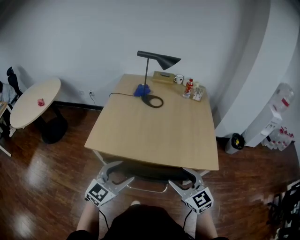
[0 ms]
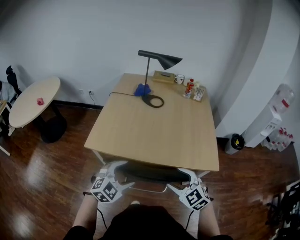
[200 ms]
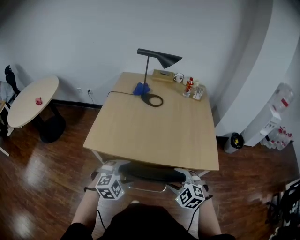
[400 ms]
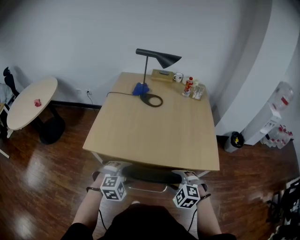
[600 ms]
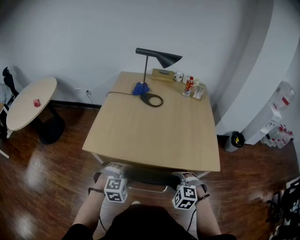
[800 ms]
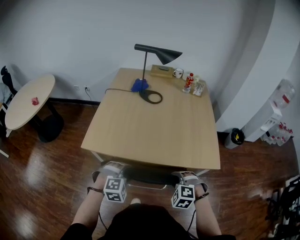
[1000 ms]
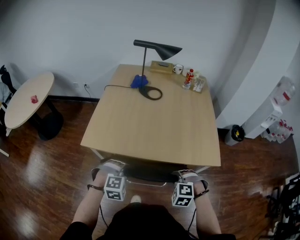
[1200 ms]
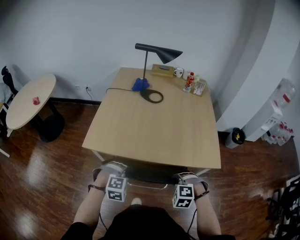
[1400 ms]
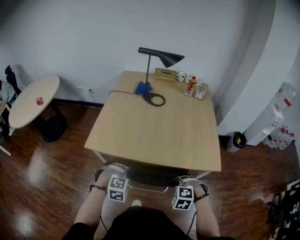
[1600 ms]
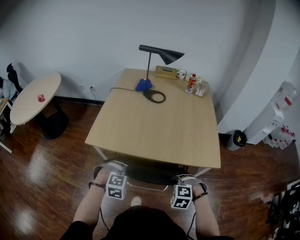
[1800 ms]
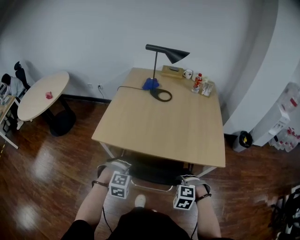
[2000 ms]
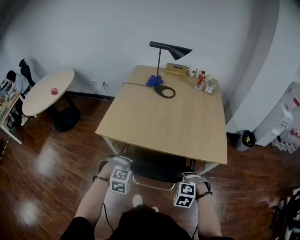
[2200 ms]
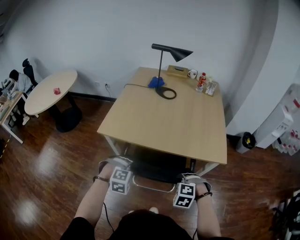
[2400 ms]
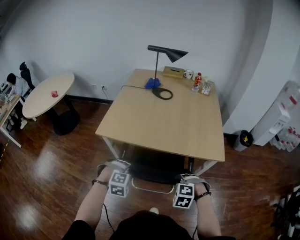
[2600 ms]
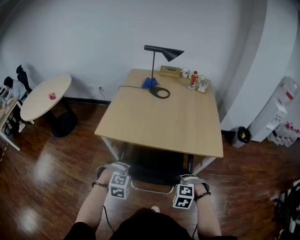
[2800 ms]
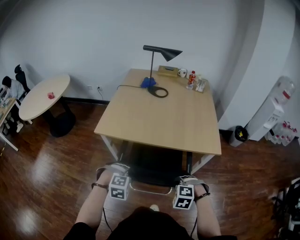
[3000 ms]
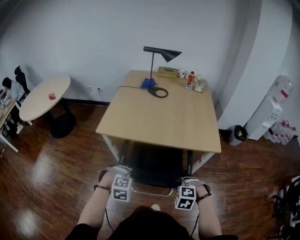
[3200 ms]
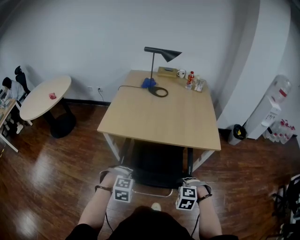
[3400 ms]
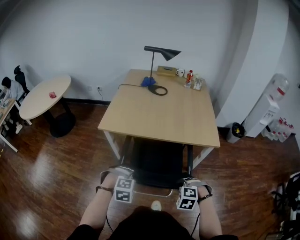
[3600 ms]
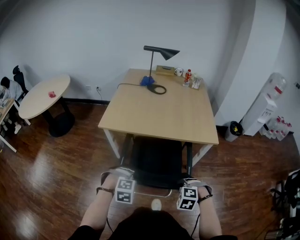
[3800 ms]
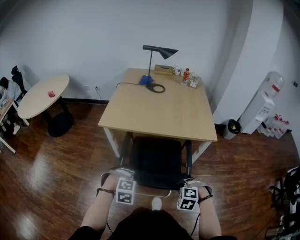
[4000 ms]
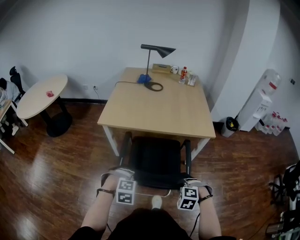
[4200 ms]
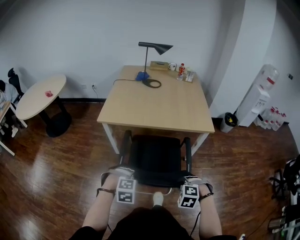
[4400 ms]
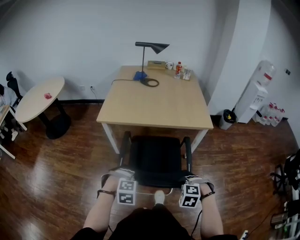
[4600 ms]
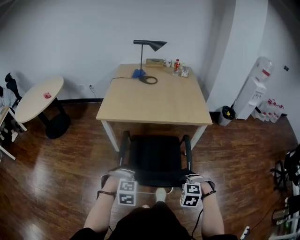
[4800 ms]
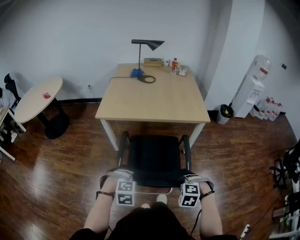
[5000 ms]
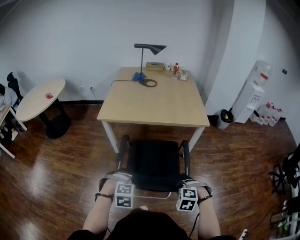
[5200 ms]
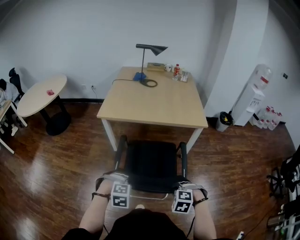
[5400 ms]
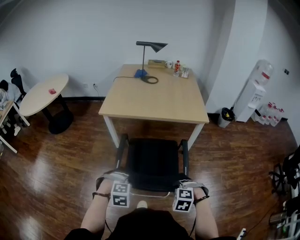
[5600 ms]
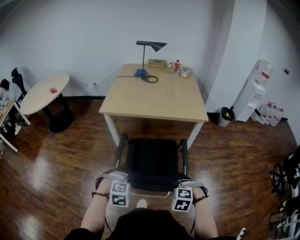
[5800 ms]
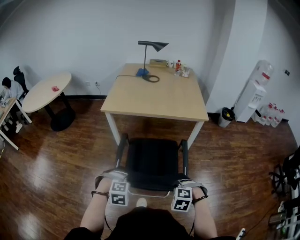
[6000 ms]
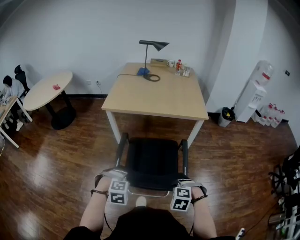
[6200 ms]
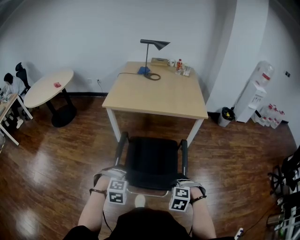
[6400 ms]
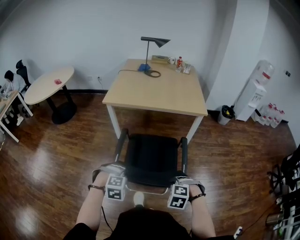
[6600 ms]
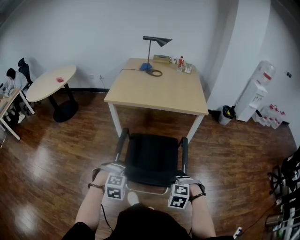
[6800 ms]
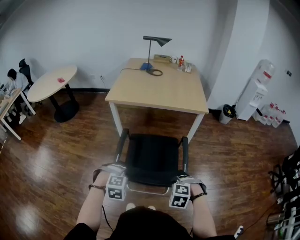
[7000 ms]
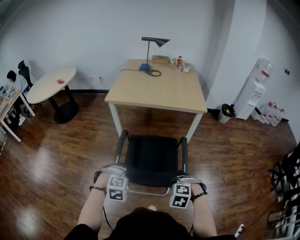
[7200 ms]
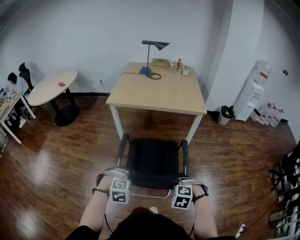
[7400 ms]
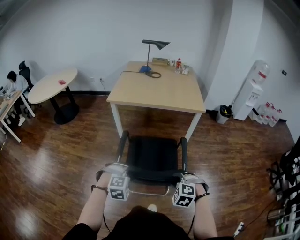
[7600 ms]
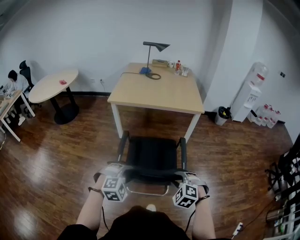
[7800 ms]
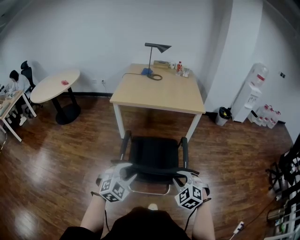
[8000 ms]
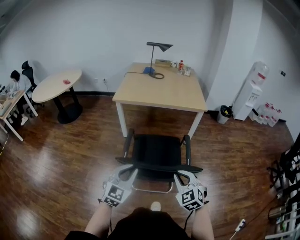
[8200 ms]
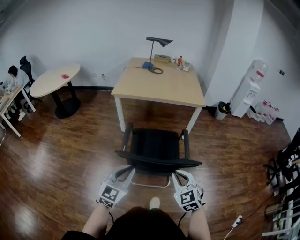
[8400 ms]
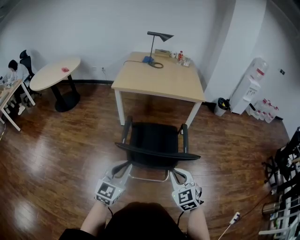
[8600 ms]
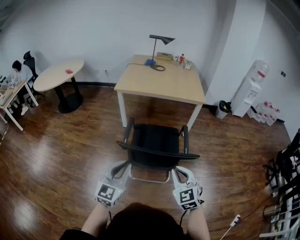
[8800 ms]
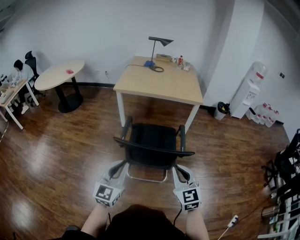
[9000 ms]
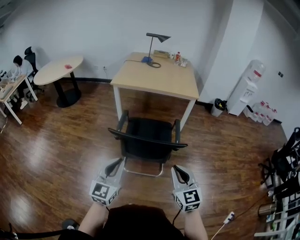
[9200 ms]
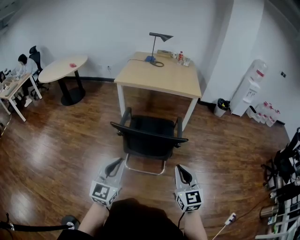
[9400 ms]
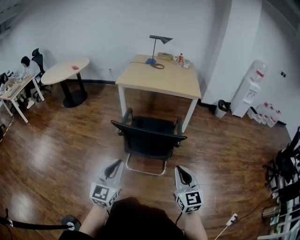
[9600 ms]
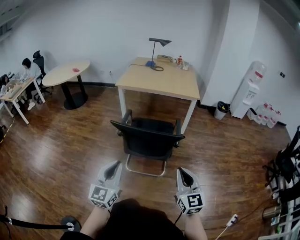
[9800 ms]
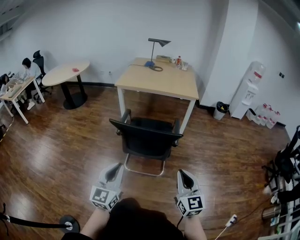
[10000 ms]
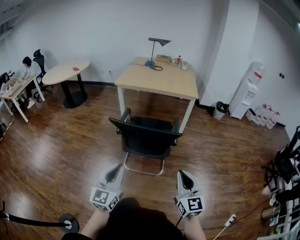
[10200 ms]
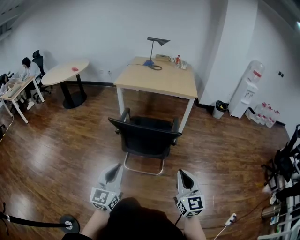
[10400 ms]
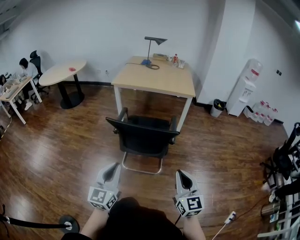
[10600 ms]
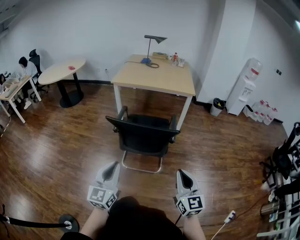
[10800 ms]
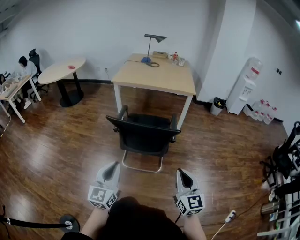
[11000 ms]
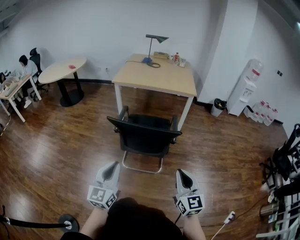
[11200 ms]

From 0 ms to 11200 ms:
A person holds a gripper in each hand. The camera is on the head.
From 0 ms to 1600 ms: Both grippers travel together downward, approximately 15 cm. The right gripper points its fingers approximately 50 degrees further downward, and closes, while the left gripper tips its fingers downward by approximately 50 degrees, and closes.
From 1600 ms to 3200 ms: The grippers both shift backward by approximately 15 cm.
From 3200 ms to 4800 ms: The two grippers go approximately 20 cm backward.
From 4800 ms to 6400 ms: The two grippers go roughly 15 cm backward.
From 6400 ms to 8000 ms: Both grippers travel together upward and backward, roughly 15 cm. The left gripper tips its fingers upward by roughly 40 degrees. The right gripper points its fingers roughly 30 degrees further upward.
From 8000 ms to 9600 ms: The right gripper goes approximately 20 cm backward and upward, and tips its fingers upward by roughly 30 degrees, while the left gripper heads backward, covering about 20 cm, turns by about 50 degrees, and closes its fingers.

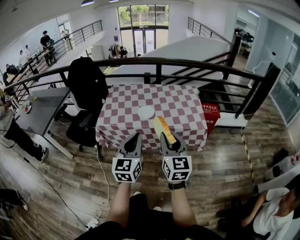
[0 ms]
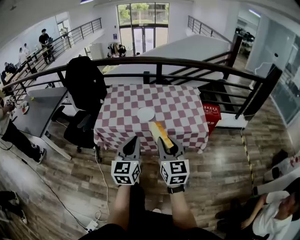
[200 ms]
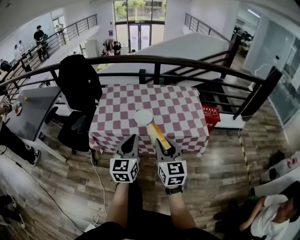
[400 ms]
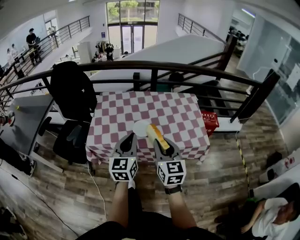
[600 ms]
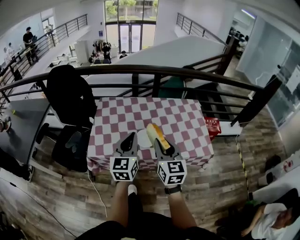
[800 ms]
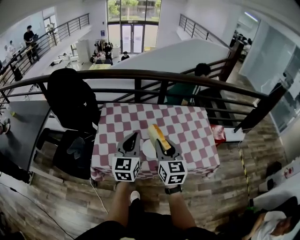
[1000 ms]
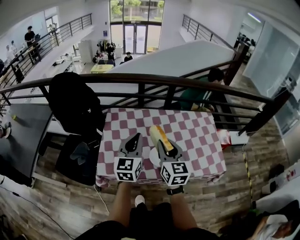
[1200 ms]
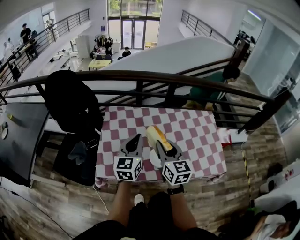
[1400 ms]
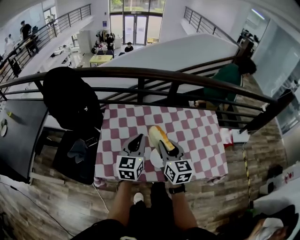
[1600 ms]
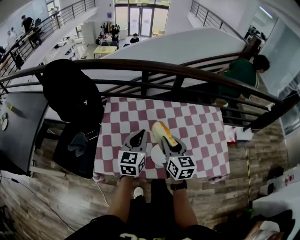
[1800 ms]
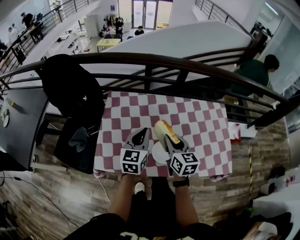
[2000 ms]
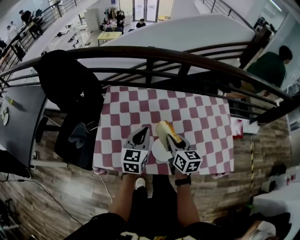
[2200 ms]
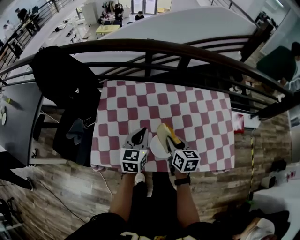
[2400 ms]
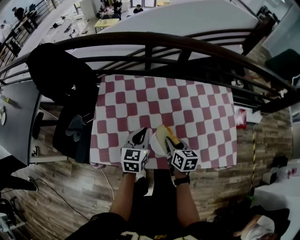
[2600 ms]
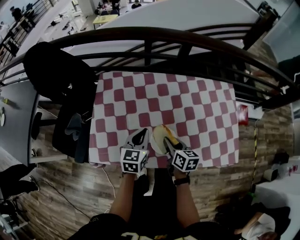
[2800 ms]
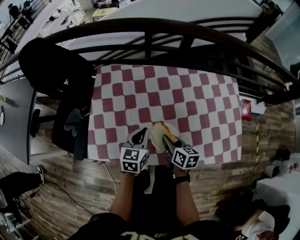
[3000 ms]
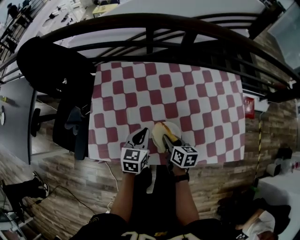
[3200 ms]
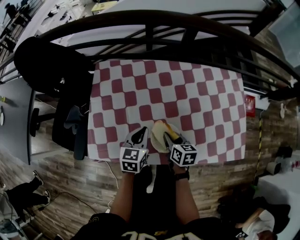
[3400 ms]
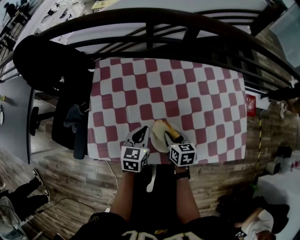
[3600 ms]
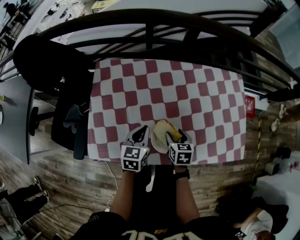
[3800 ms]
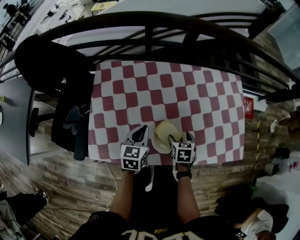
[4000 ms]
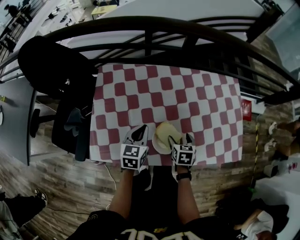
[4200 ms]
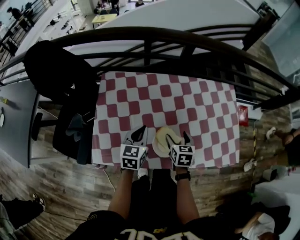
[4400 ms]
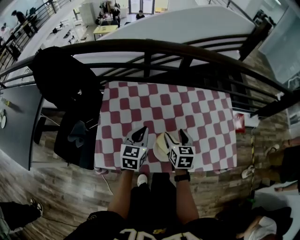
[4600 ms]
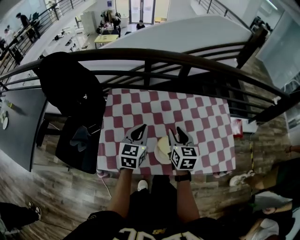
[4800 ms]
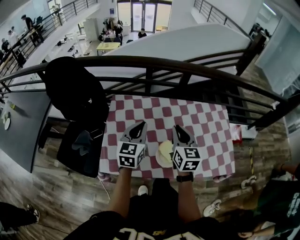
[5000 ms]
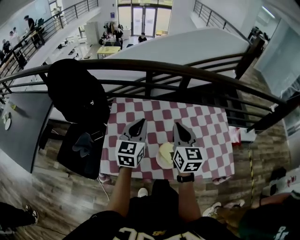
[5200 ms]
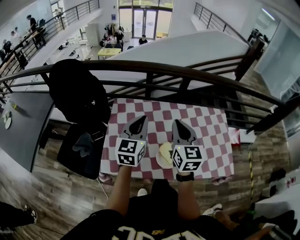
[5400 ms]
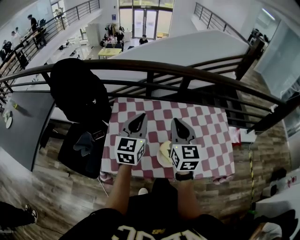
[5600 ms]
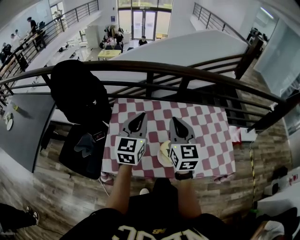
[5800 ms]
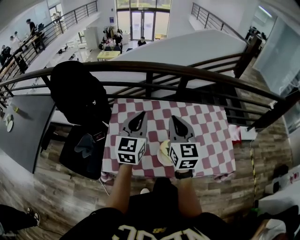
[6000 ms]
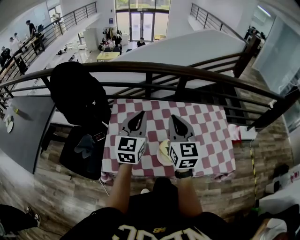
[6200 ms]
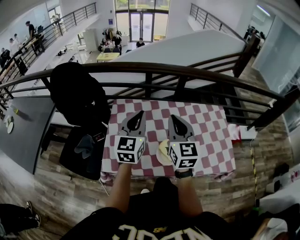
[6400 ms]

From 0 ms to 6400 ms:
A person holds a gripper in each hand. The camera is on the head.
From 0 ms to 1600 ms: The two grippers travel together, forward, roughly 50 cm.
From 1600 ms to 3200 ms: The two grippers go roughly 25 cm downward. The right gripper changes its angle by some 40 degrees, while the left gripper changes its angle by roughly 20 degrees.
From 3200 ms to 4800 ms: Both grippers move upward, roughly 15 cm. The right gripper swivels approximately 40 degrees, and opens, then closes once more.
From 4800 ms to 6400 ms: The grippers both shift upward by about 15 cm. The right gripper rotates some 20 degrees, and closes its fingers.

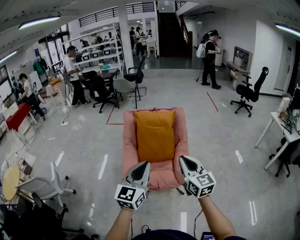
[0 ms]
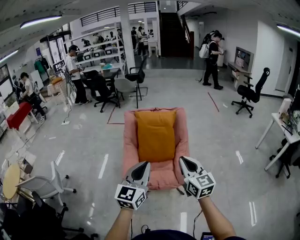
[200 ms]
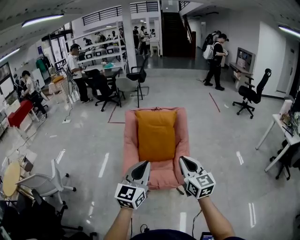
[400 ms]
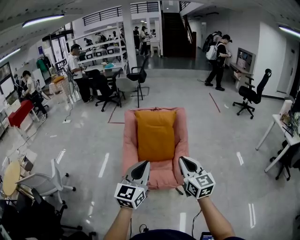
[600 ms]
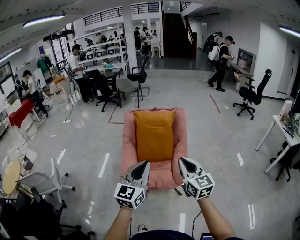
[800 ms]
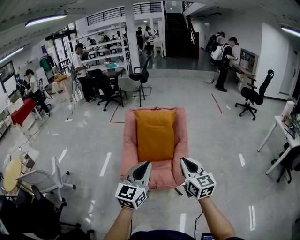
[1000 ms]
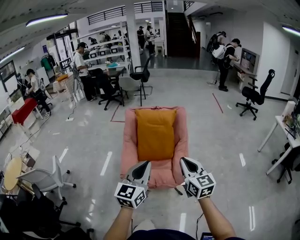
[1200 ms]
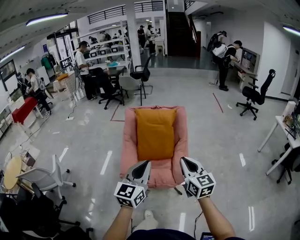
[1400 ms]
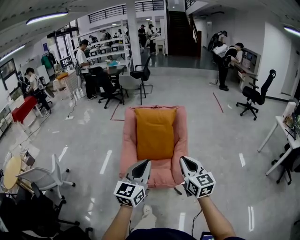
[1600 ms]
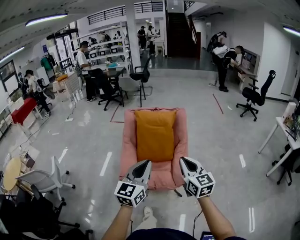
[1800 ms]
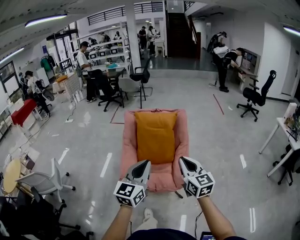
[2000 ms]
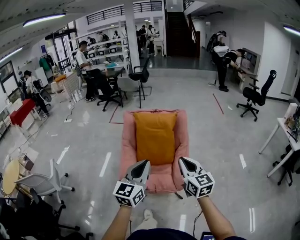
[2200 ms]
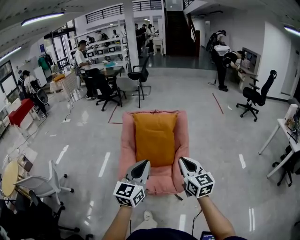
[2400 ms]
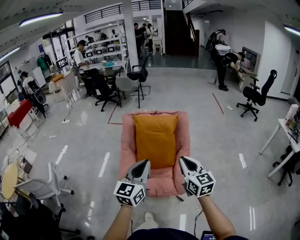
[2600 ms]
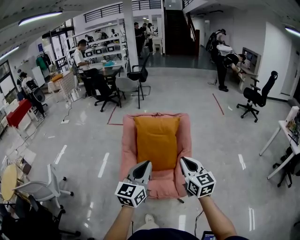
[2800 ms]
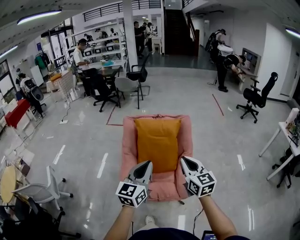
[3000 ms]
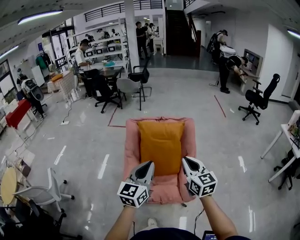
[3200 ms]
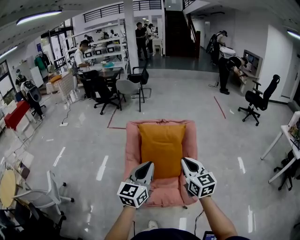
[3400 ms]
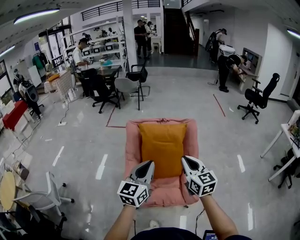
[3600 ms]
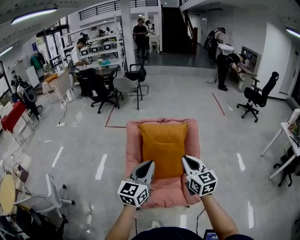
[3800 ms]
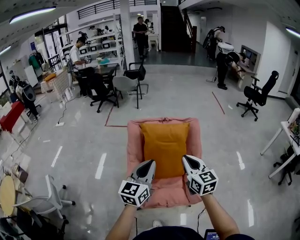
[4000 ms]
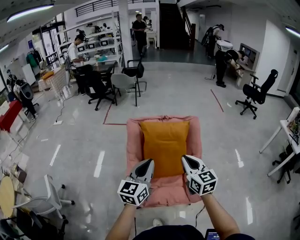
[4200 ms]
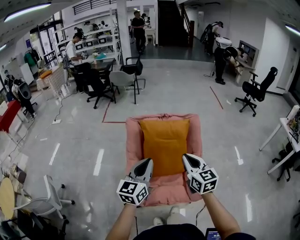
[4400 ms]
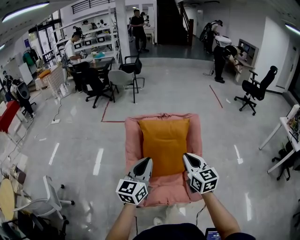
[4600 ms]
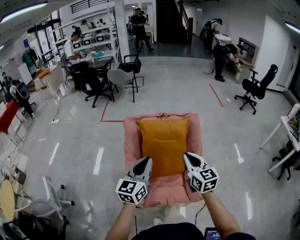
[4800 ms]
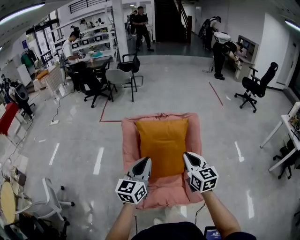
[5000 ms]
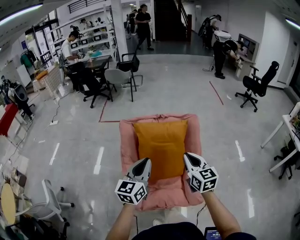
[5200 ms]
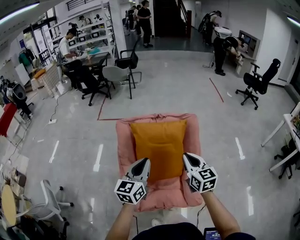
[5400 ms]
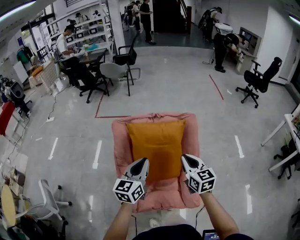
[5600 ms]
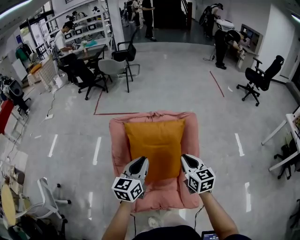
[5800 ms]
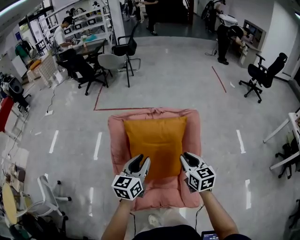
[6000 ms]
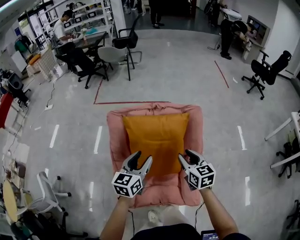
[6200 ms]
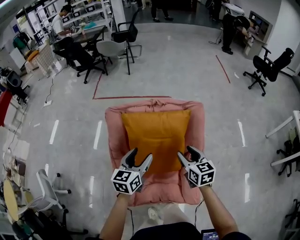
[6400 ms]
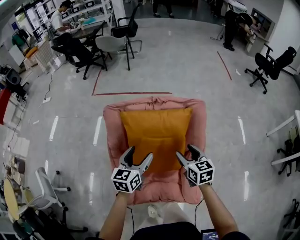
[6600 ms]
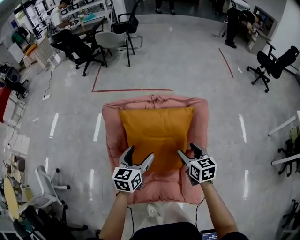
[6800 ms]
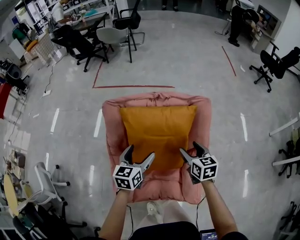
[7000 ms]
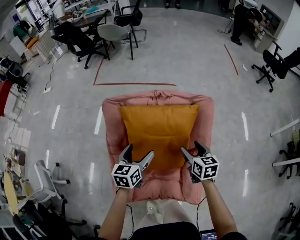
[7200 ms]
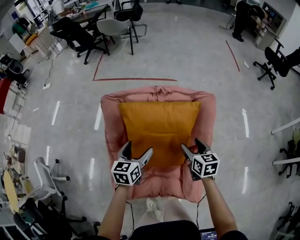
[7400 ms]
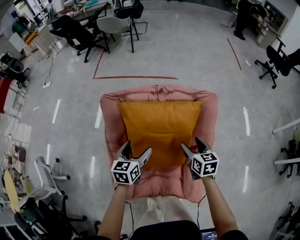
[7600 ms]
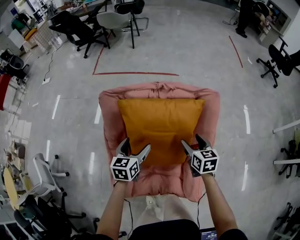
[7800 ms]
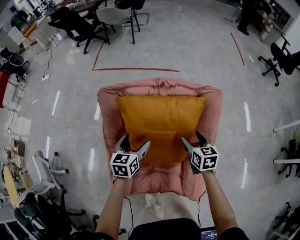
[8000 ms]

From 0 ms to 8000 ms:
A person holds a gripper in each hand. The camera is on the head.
From 0 ms to 1600 ms: The right gripper changes place by approximately 5 cm.
From 1600 ms to 3200 ms: The grippers both shift forward by roughly 20 cm.
From 3200 ms to 4800 ms: The grippers both shift forward and to the left by about 15 cm.
From 4800 ms to 6400 ms: Both grippers move forward and downward, about 25 cm. The left gripper opens, while the right gripper opens.
From 6400 ms to 8000 ms: The two grippers go about 15 cm downward and forward.
